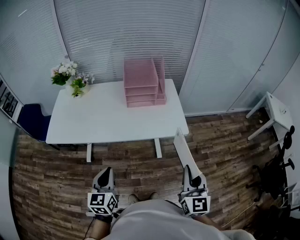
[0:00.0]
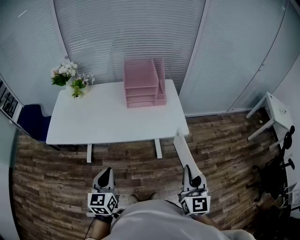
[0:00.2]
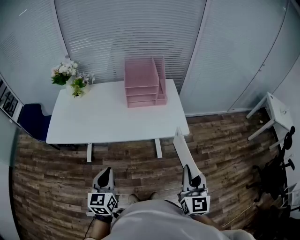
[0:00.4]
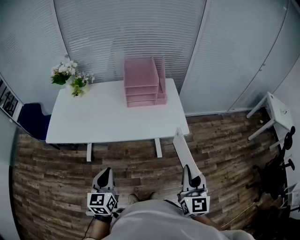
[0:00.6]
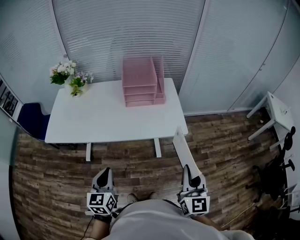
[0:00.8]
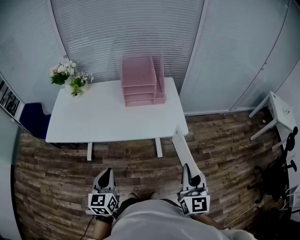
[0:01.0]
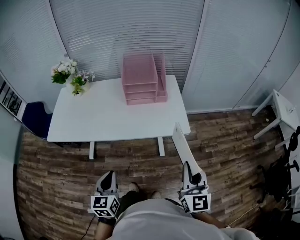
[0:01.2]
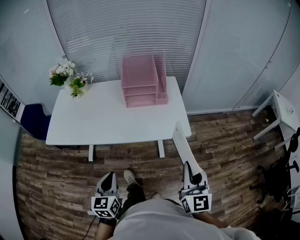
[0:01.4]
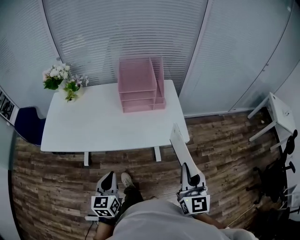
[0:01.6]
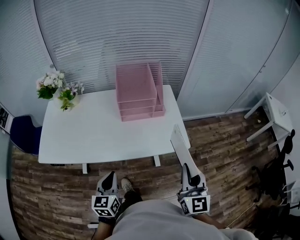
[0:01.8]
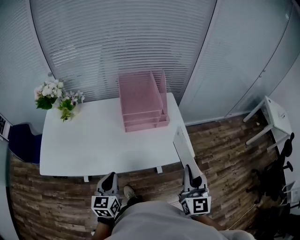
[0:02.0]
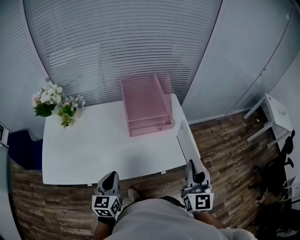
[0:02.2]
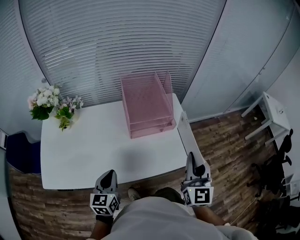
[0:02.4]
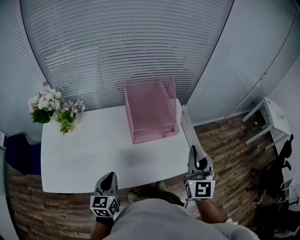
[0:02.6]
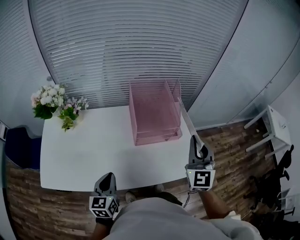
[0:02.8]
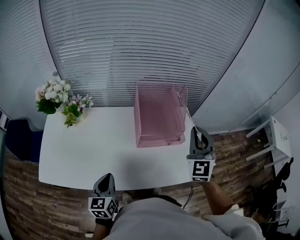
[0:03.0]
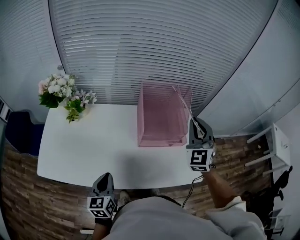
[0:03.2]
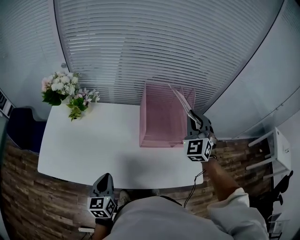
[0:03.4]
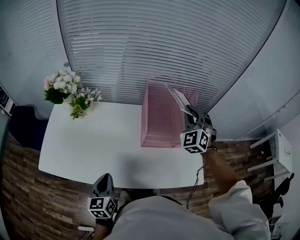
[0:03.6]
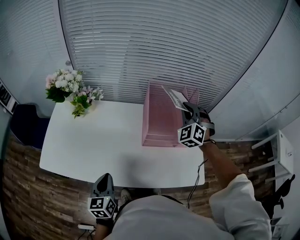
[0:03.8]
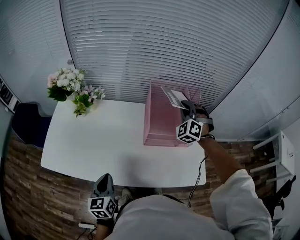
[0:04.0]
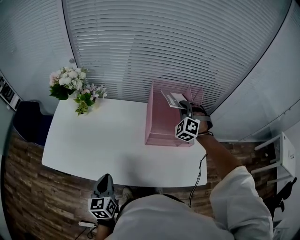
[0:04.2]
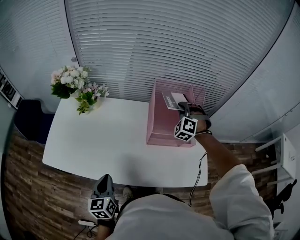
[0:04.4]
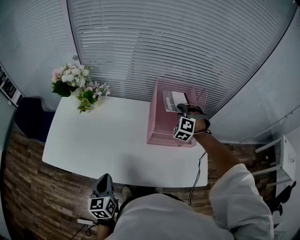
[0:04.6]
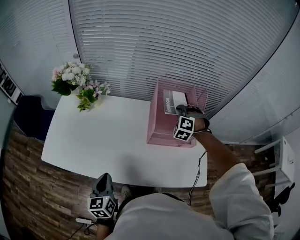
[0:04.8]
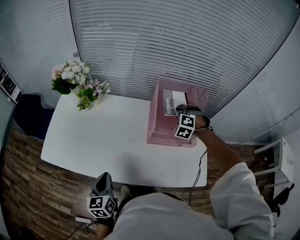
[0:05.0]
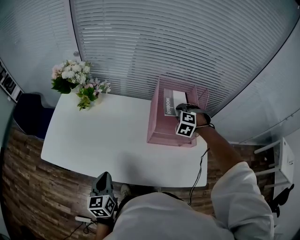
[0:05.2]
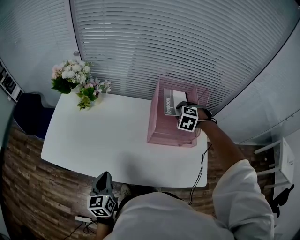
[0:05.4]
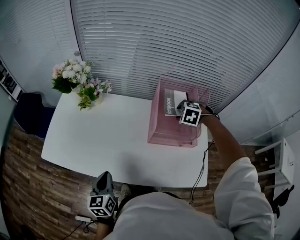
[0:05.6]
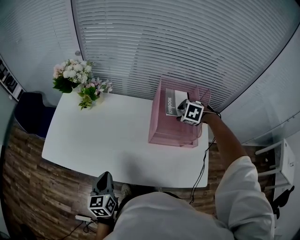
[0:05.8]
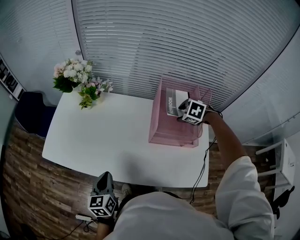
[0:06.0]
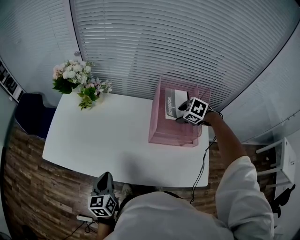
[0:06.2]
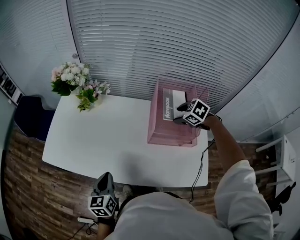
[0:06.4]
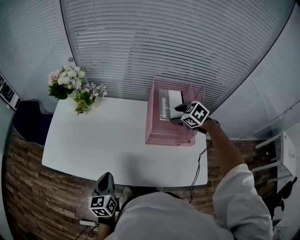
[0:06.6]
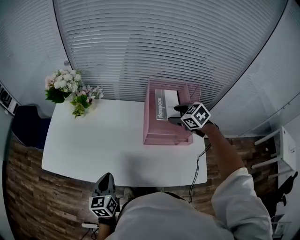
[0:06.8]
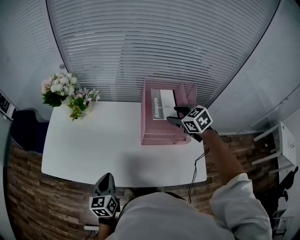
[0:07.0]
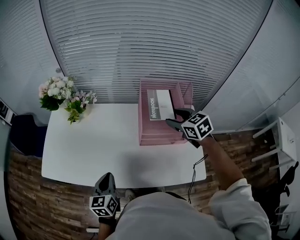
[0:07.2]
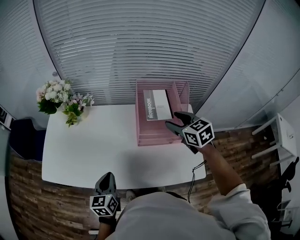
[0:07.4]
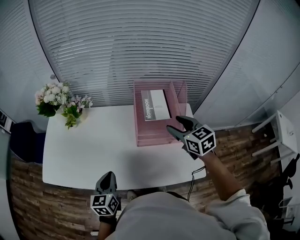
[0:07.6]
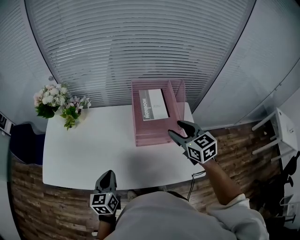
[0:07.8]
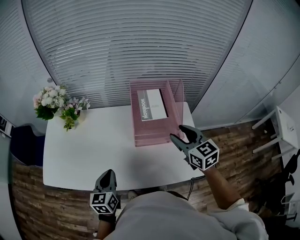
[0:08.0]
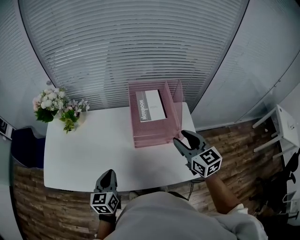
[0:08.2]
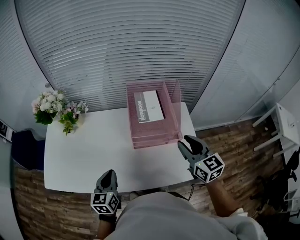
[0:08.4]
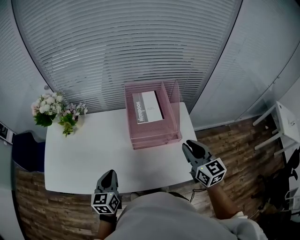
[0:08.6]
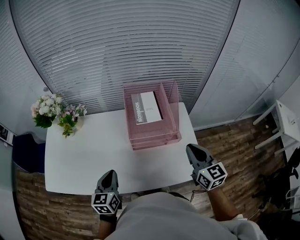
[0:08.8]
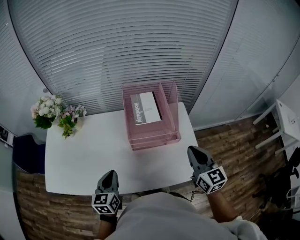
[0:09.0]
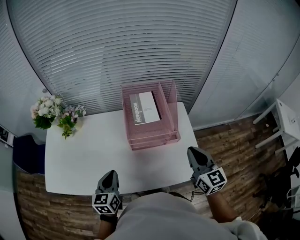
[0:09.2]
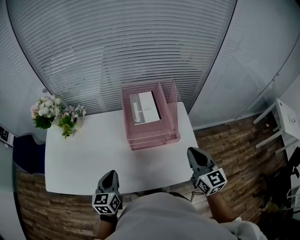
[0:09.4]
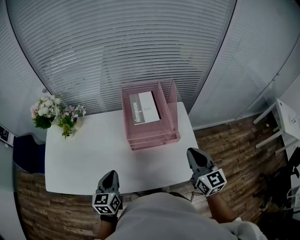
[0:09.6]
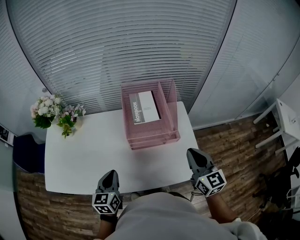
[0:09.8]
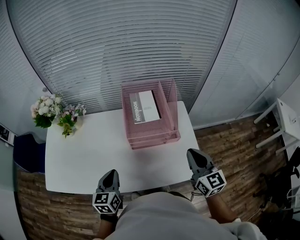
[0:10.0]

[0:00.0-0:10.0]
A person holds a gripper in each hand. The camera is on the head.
0:00.0 to 0:01.4: The left gripper shifts by roughly 5 cm, while the right gripper shifts some 5 cm forward.
0:01.4 to 0:02.8: Both grippers travel together forward and to the left, approximately 35 cm. The right gripper changes its angle by roughly 30 degrees.
0:02.8 to 0:04.2: The right gripper heads forward and downward, covering approximately 30 cm, and rolls counterclockwise, seen from behind, by roughly 50 degrees; the left gripper changes place by roughly 5 cm.
0:04.2 to 0:05.8: The right gripper heads downward, covering roughly 10 cm, angles its fingers downward, by some 50 degrees, and opens its fingers.
0:05.8 to 0:07.2: The right gripper travels upward by some 10 cm, and tilts its fingers roughly 40 degrees upward; the left gripper ends up about 5 cm from where it was.
0:07.2 to 0:08.6: The left gripper heads to the right, covering about 5 cm. Meanwhile the right gripper is displaced backward and to the right by approximately 20 cm, changes its angle by some 30 degrees, and closes up.
0:08.6 to 0:10.0: There are only small adjustments of the grippers.

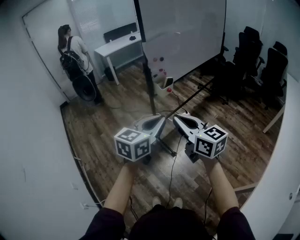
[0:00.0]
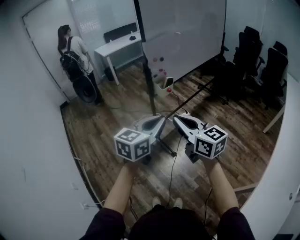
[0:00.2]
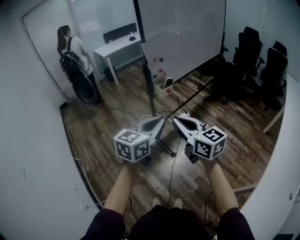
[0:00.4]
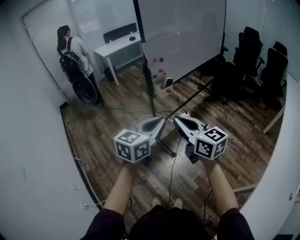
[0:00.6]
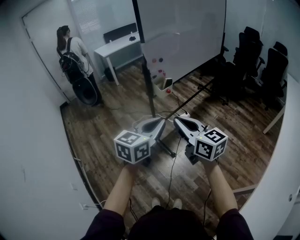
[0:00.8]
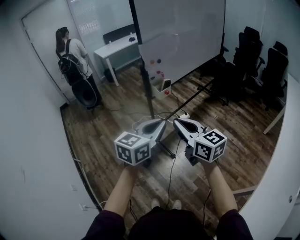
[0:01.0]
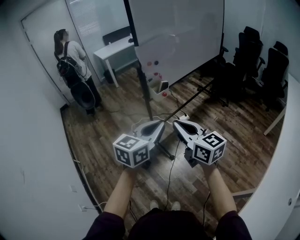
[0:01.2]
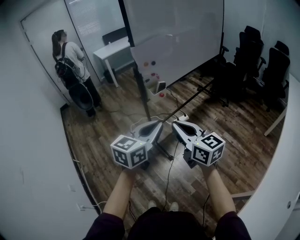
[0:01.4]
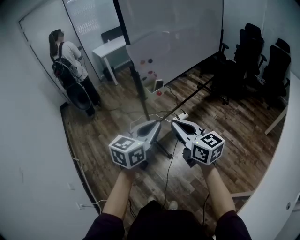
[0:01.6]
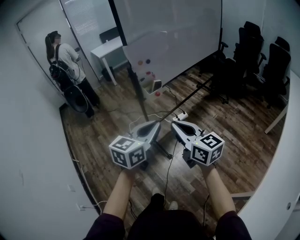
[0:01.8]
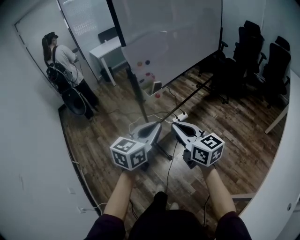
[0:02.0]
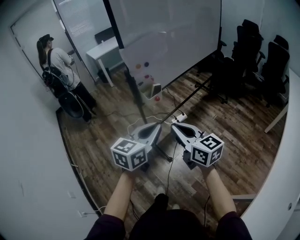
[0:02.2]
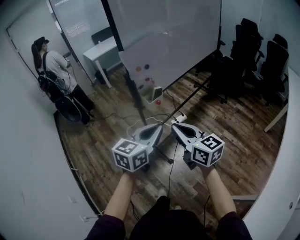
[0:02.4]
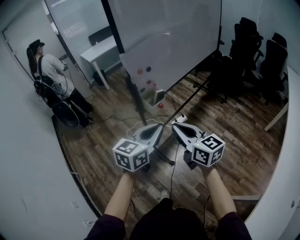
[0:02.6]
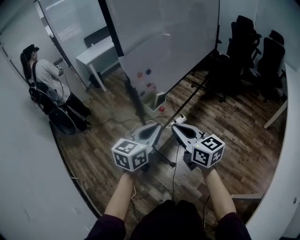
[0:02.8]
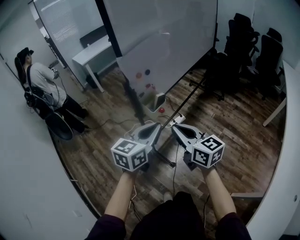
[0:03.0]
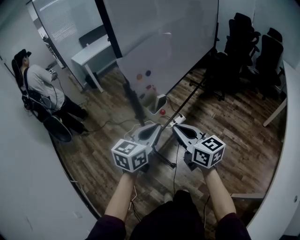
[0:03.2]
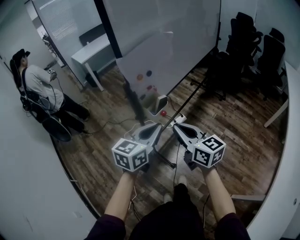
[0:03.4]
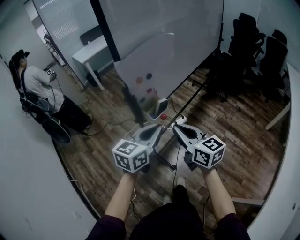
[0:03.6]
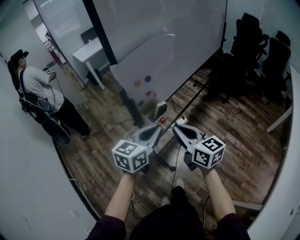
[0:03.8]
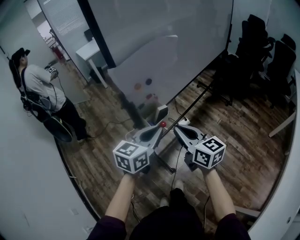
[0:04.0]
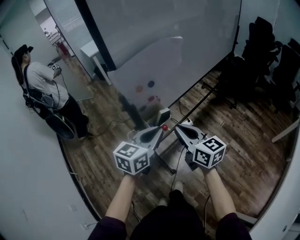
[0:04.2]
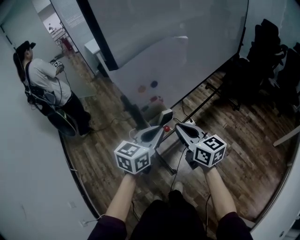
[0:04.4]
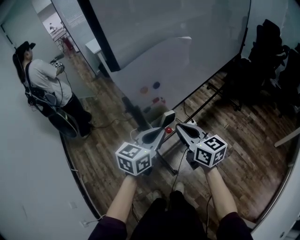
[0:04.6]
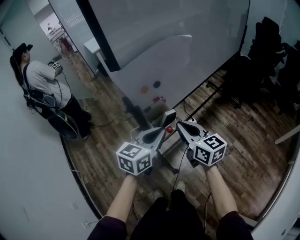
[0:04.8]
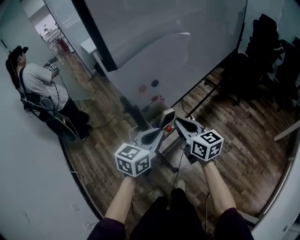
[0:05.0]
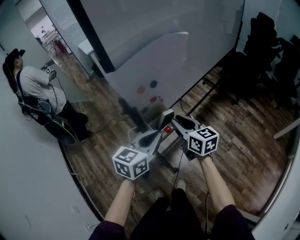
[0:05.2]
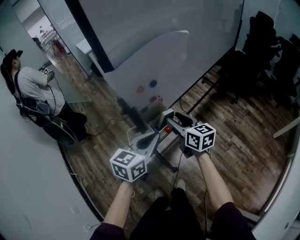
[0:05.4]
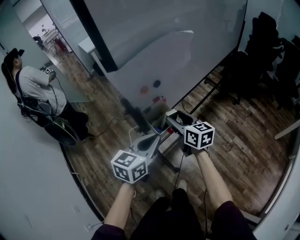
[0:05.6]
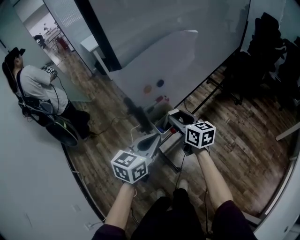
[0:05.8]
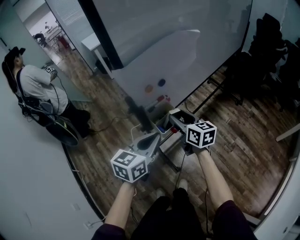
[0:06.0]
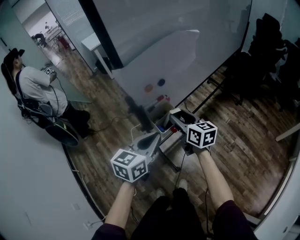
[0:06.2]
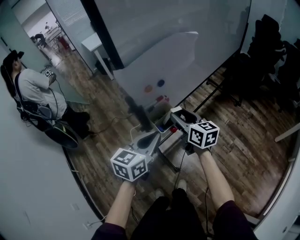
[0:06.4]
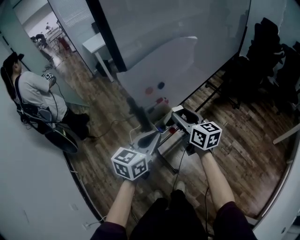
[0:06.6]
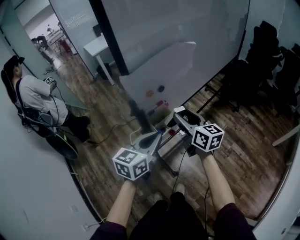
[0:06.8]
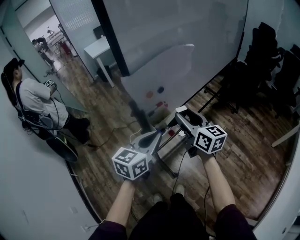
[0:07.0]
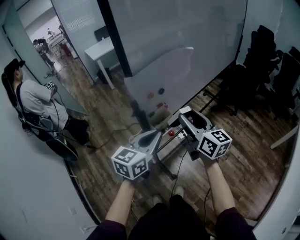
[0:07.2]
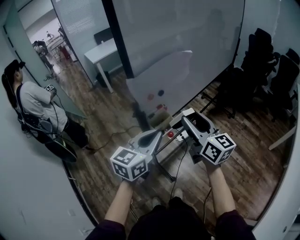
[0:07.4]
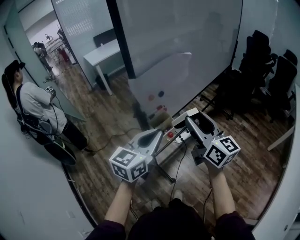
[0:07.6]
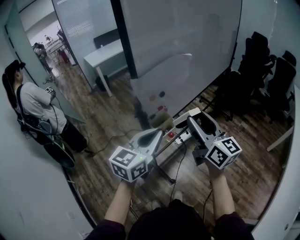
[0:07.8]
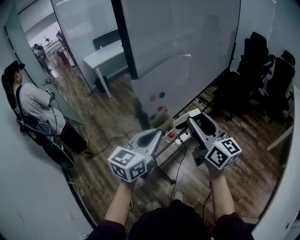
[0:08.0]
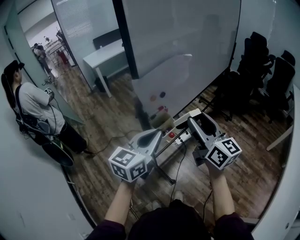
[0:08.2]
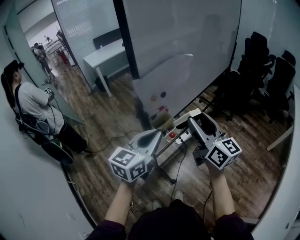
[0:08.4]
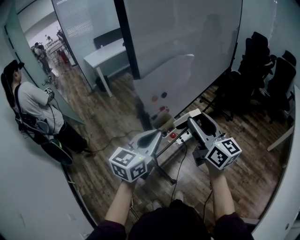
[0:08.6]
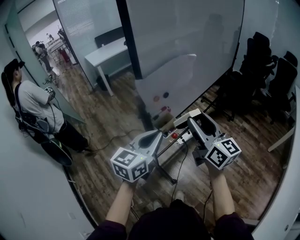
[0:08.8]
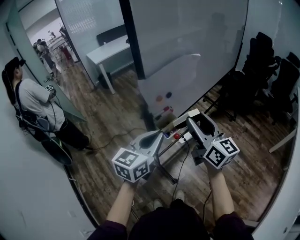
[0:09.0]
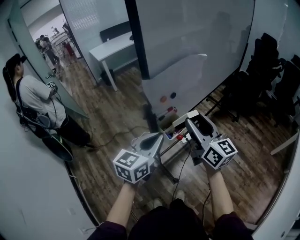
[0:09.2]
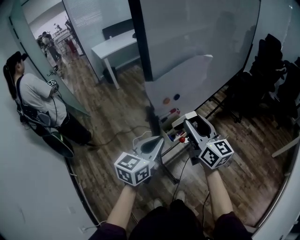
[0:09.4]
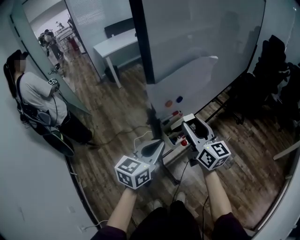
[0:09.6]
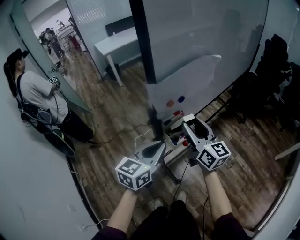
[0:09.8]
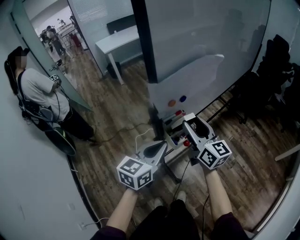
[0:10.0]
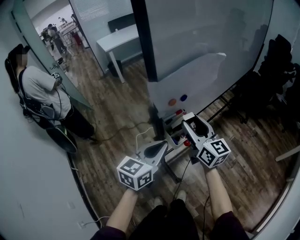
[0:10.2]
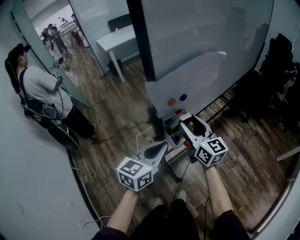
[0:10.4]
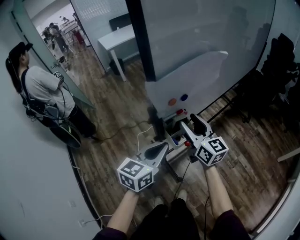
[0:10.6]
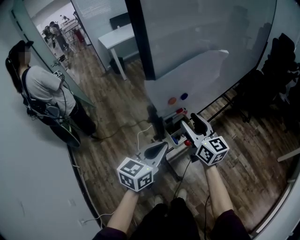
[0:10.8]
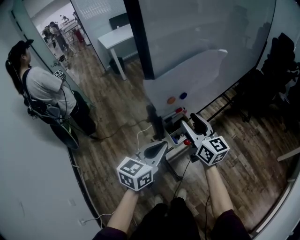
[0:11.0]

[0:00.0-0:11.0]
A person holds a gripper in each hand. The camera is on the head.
0:00.0 to 0:01.6: The grippers both shift to the right by some 10 cm.
0:01.6 to 0:03.2: The two grippers go approximately 20 cm forward.
0:03.2 to 0:04.8: The grippers both shift forward by about 15 cm.
0:04.8 to 0:06.2: The right gripper goes about 10 cm forward and downward, and opens.
0:06.2 to 0:07.8: The right gripper heads upward and backward, covering some 25 cm, and turns by about 30 degrees. The left gripper travels upward and backward by some 15 cm.
0:07.8 to 0:09.4: The left gripper is displaced downward by approximately 5 cm, while the right gripper travels forward, to the left and downward by roughly 10 cm.
0:09.4 to 0:11.0: The left gripper is displaced downward by roughly 5 cm. The right gripper goes some 10 cm downward and forward.

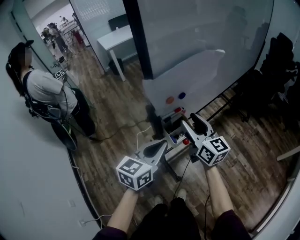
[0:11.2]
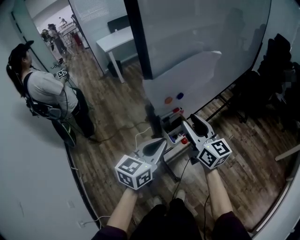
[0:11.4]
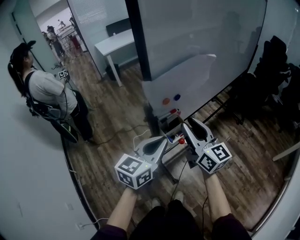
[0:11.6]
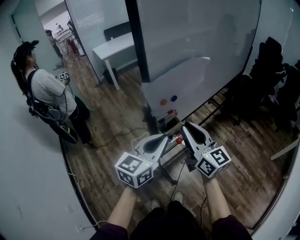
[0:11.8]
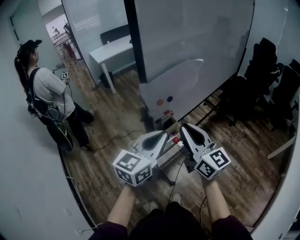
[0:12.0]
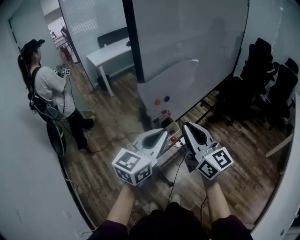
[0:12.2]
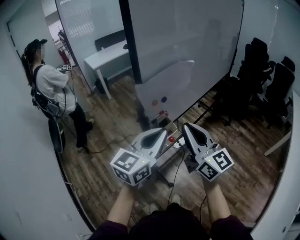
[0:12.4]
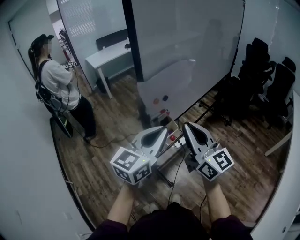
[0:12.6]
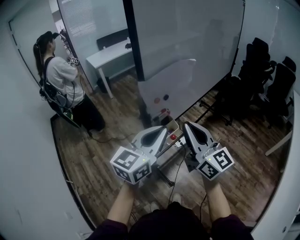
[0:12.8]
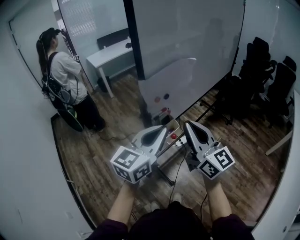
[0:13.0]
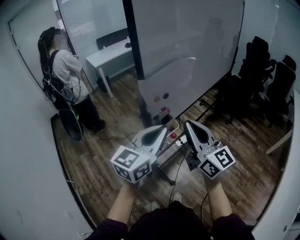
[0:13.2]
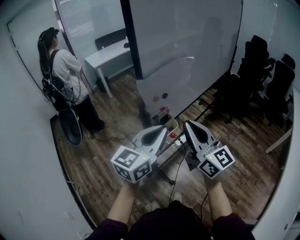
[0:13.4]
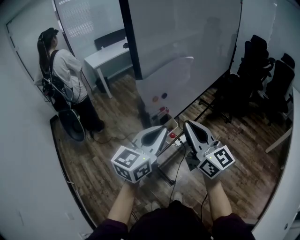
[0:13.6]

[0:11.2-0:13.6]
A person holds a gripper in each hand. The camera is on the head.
0:11.2 to 0:12.4: The left gripper goes some 15 cm upward and backward. Meanwhile the right gripper moves backward and upward, about 20 cm, and closes.
0:12.4 to 0:13.6: Both grippers stay put.
